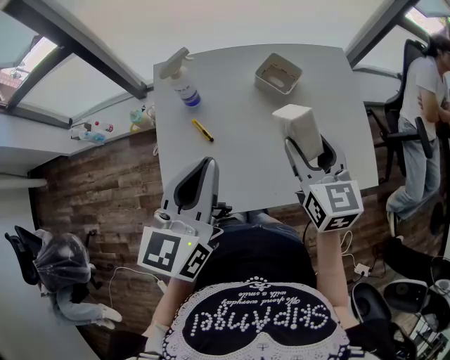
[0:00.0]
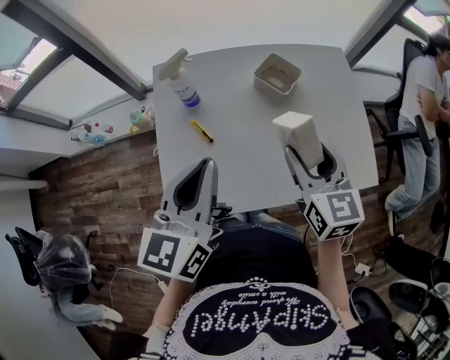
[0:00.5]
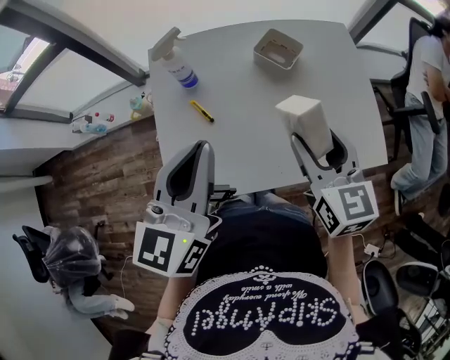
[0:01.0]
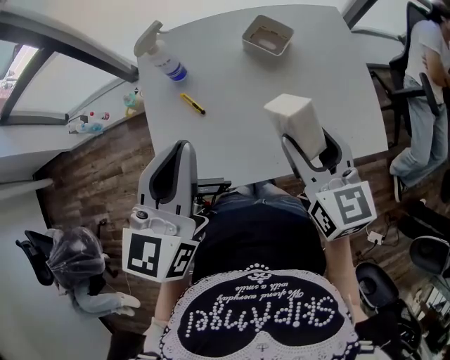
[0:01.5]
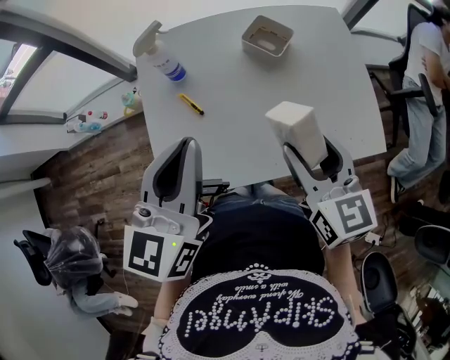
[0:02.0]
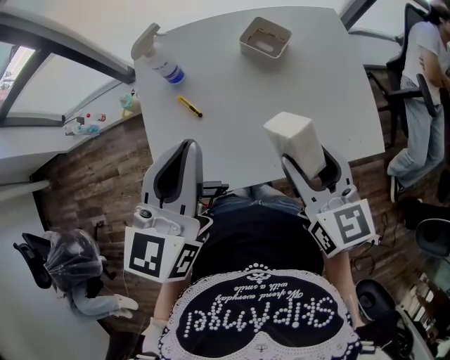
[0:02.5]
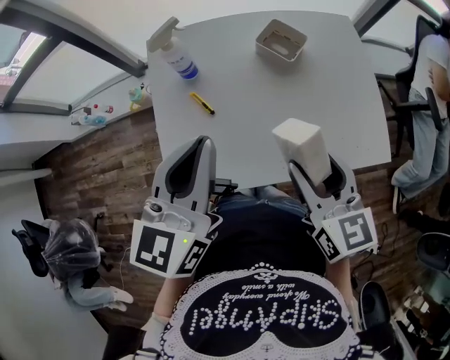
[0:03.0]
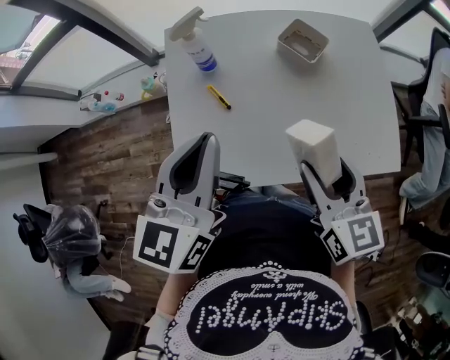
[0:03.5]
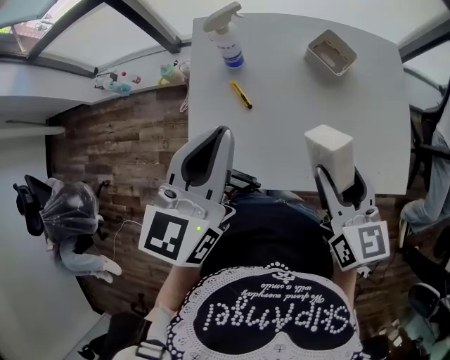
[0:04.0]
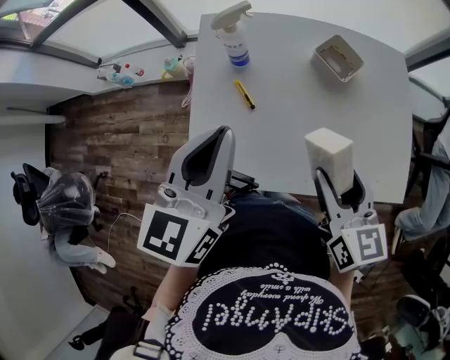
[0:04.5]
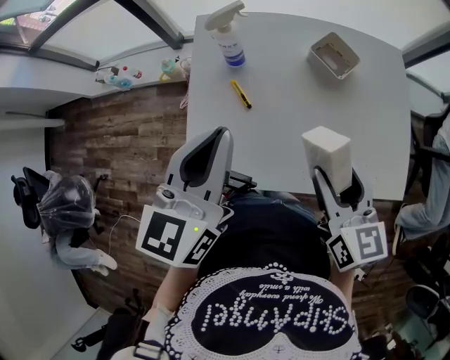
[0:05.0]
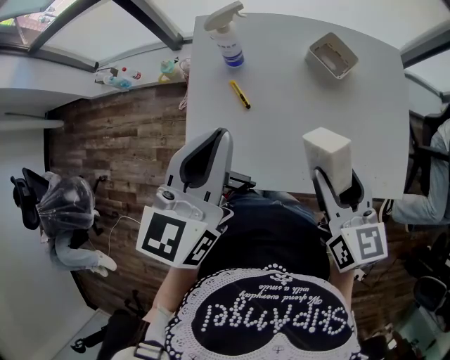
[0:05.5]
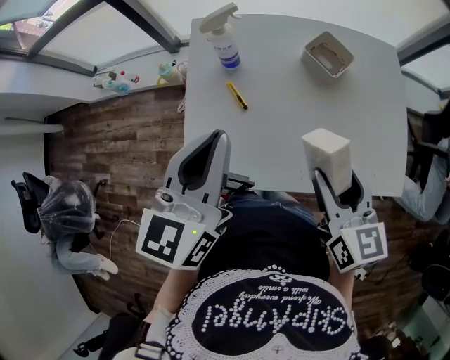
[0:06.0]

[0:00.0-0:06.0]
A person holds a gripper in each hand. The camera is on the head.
0:00.0 to 0:02.0: The right gripper shifts roughly 5 cm backward.
0:02.0 to 0:04.0: The grippers move only a little.
0:04.0 to 0:06.0: The two grippers keep their place.

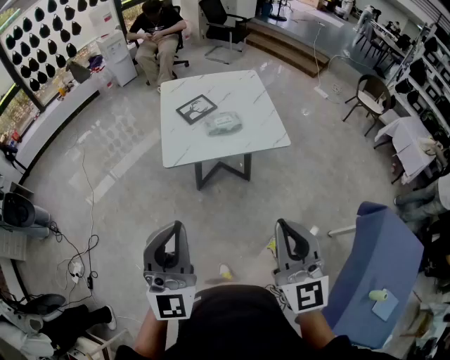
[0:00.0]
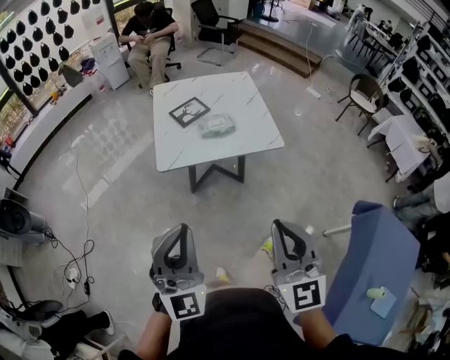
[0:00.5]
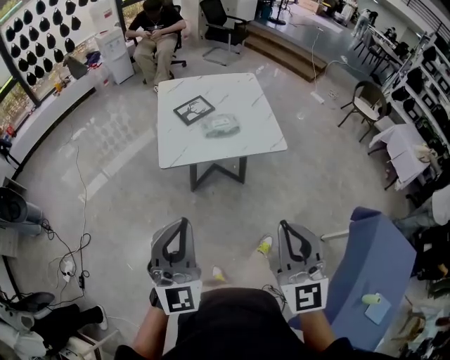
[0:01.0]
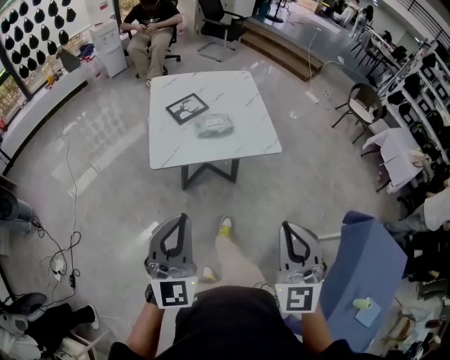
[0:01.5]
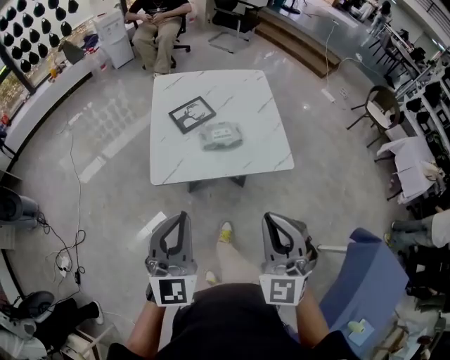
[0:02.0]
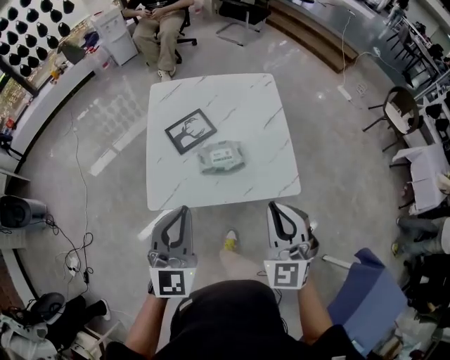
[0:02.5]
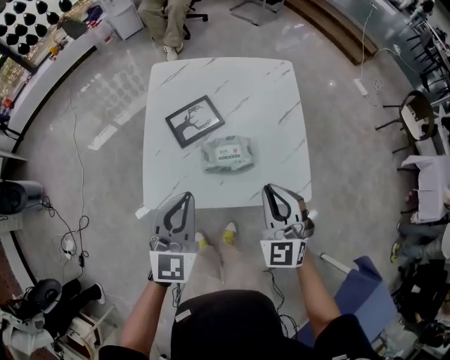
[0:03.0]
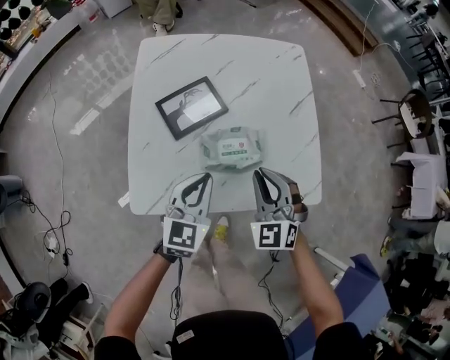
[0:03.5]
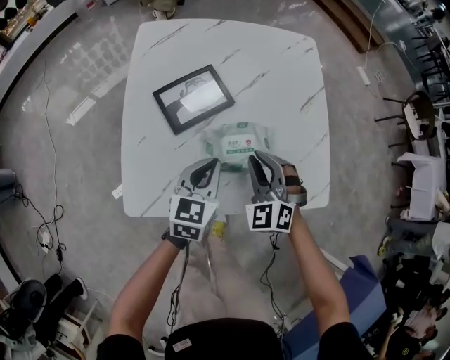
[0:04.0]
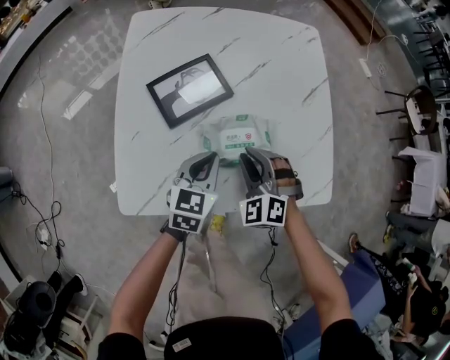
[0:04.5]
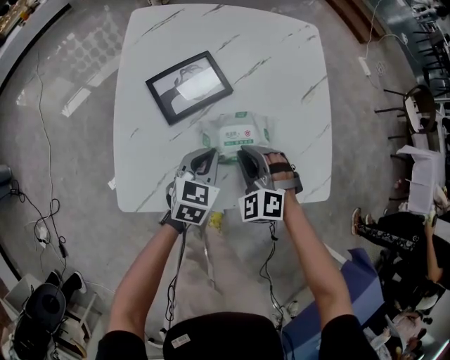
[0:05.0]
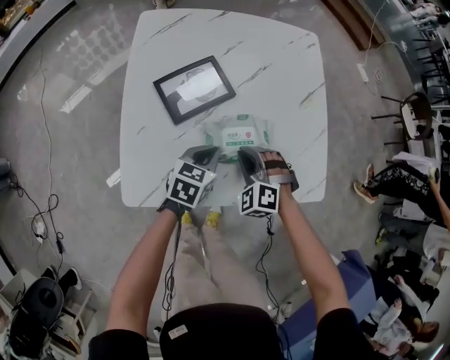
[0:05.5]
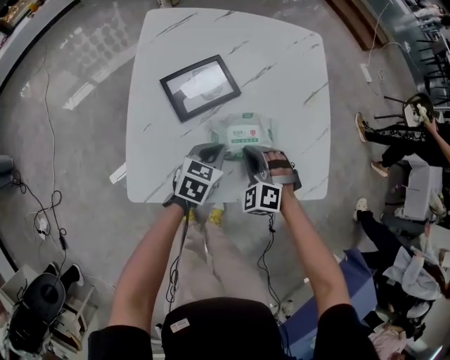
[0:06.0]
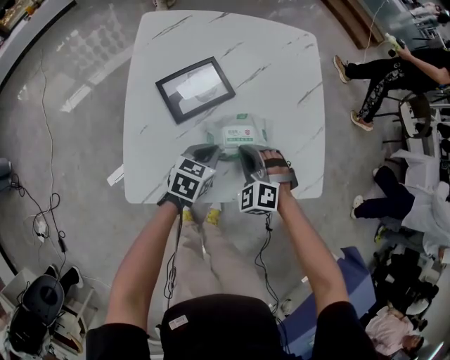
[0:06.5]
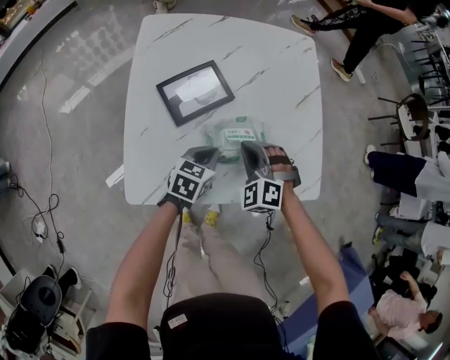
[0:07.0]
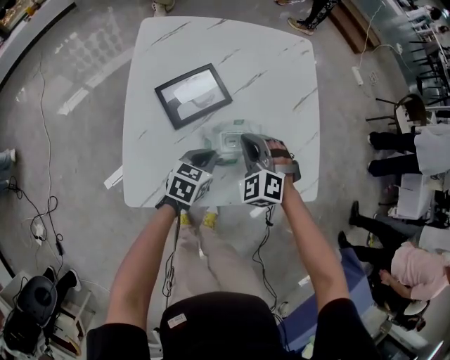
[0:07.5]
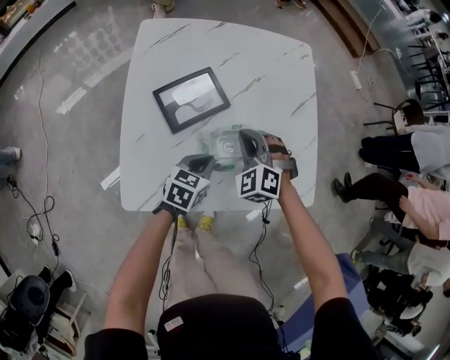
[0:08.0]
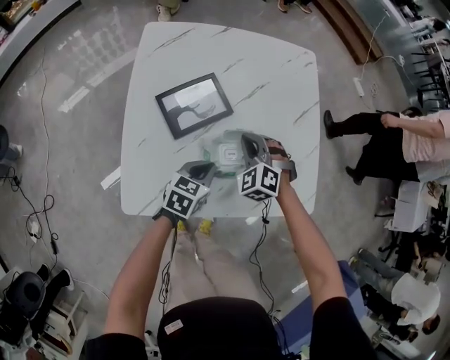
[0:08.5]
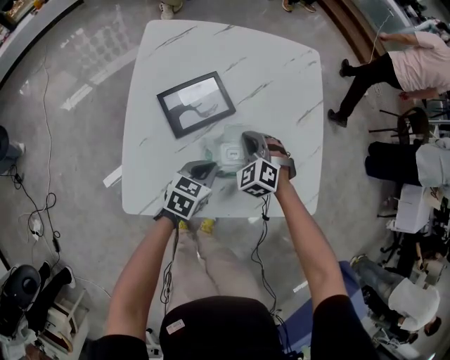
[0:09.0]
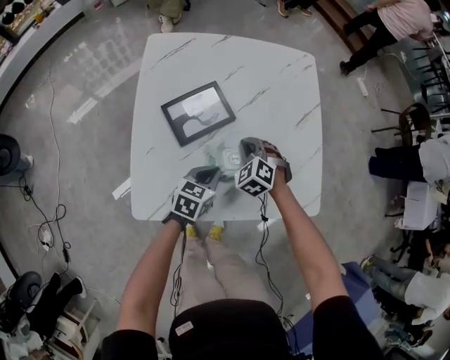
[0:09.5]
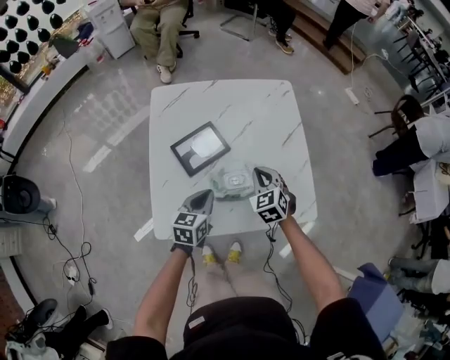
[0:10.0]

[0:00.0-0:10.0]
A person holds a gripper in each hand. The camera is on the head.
0:00.0 to 0:02.0: The grippers both shift forward by roughly 20 cm. The right gripper turns by some 30 degrees.
0:02.0 to 0:04.0: Both grippers are carried forward, about 40 cm. Both grippers travel together downward, approximately 35 cm. The left gripper swivels approximately 40 degrees; the right gripper turns by some 30 degrees.
0:04.0 to 0:06.0: The grippers both shift downward by about 5 cm. The right gripper rotates roughly 20 degrees.
0:06.0 to 0:08.0: The right gripper goes some 10 cm forward and upward.
0:08.0 to 0:10.0: The right gripper moves upward and to the right, about 10 cm, and turns by approximately 40 degrees; the left gripper is displaced upward by approximately 10 cm.

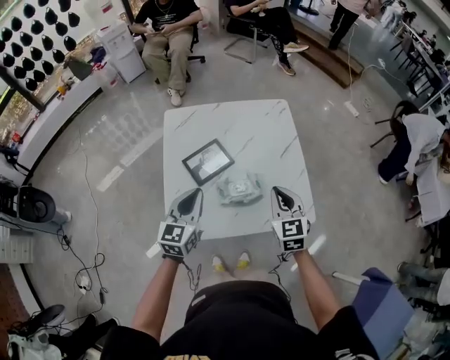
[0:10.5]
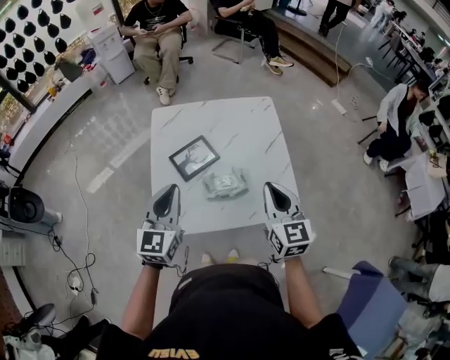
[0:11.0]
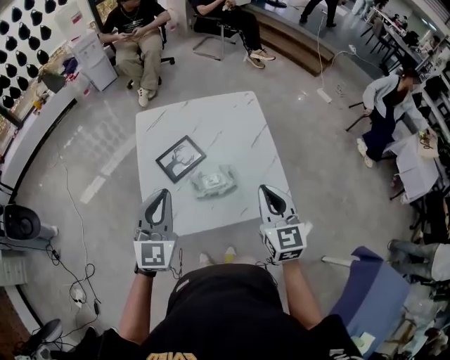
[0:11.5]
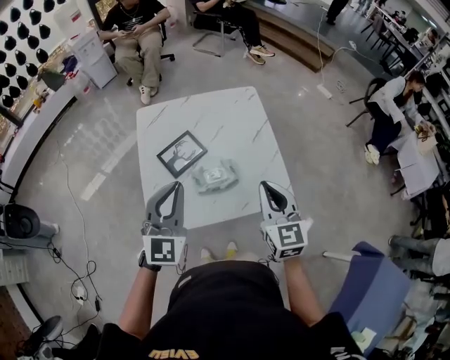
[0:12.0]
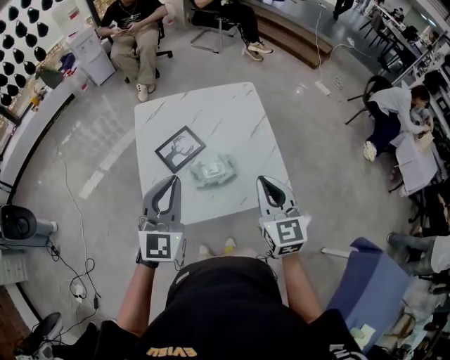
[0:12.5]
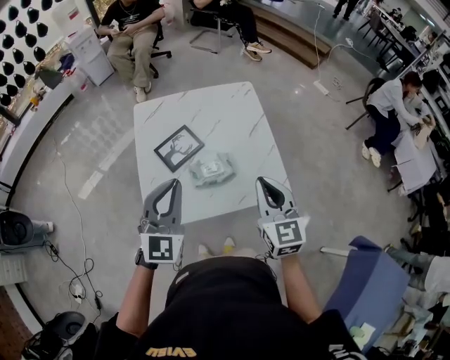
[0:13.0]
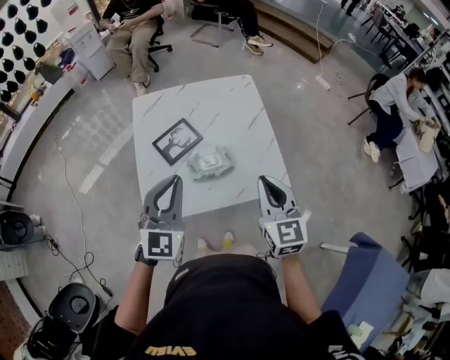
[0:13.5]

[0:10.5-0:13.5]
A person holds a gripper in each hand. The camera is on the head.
0:10.5 to 0:12.0: Both grippers move upward and backward, about 10 cm. The left gripper turns by about 30 degrees.
0:12.0 to 0:13.5: The grippers make only small movements.

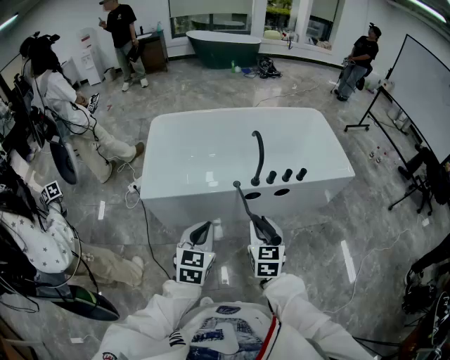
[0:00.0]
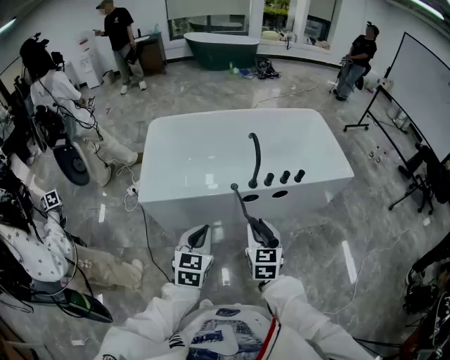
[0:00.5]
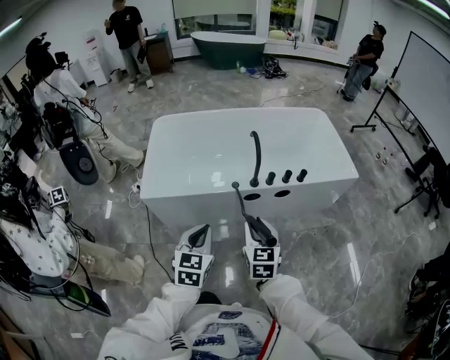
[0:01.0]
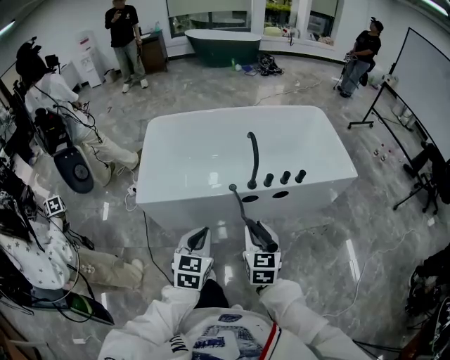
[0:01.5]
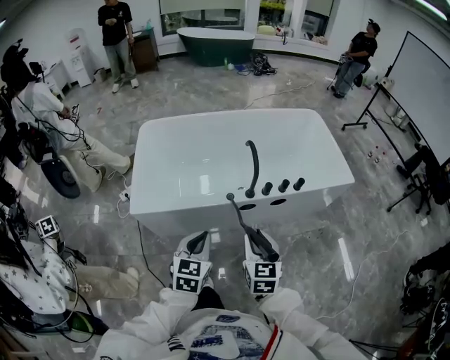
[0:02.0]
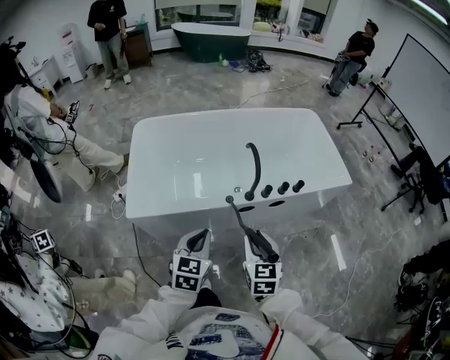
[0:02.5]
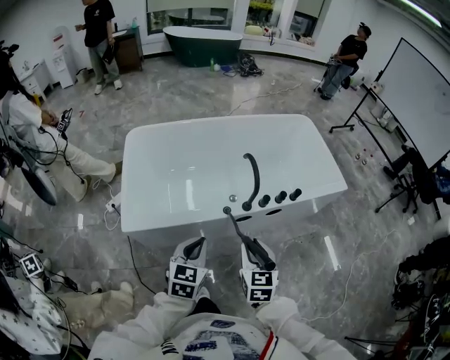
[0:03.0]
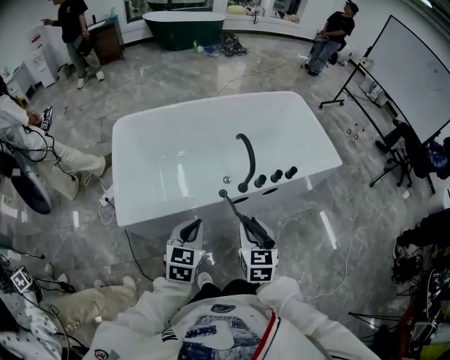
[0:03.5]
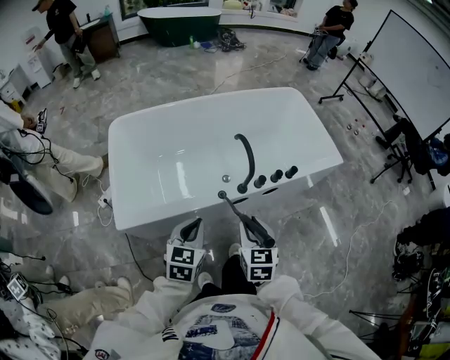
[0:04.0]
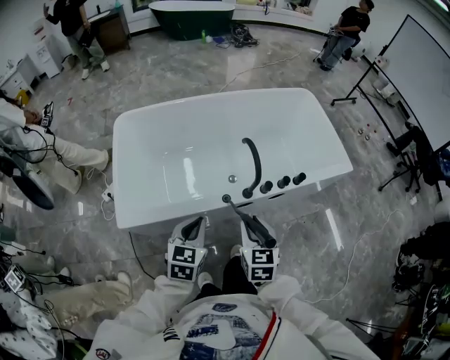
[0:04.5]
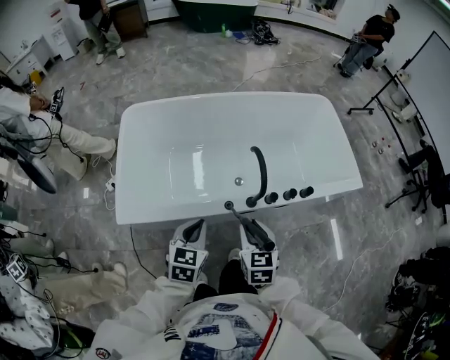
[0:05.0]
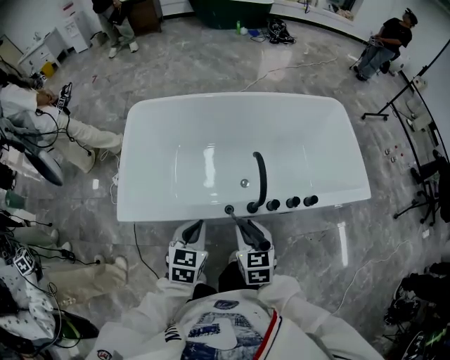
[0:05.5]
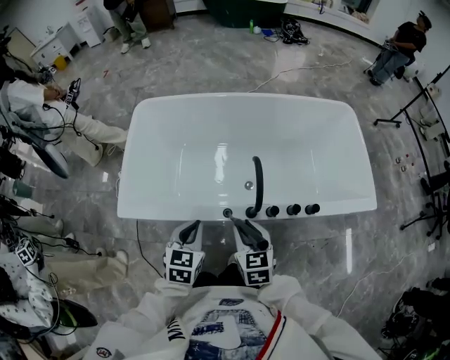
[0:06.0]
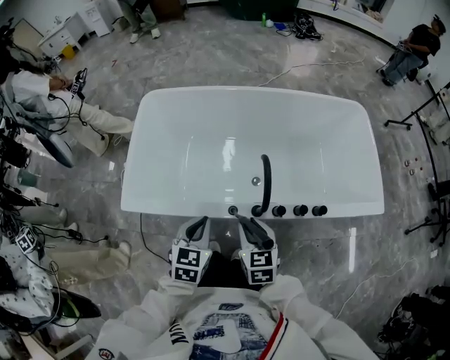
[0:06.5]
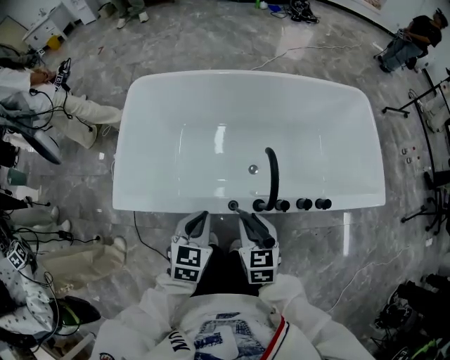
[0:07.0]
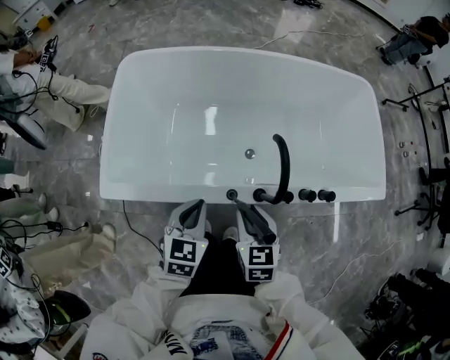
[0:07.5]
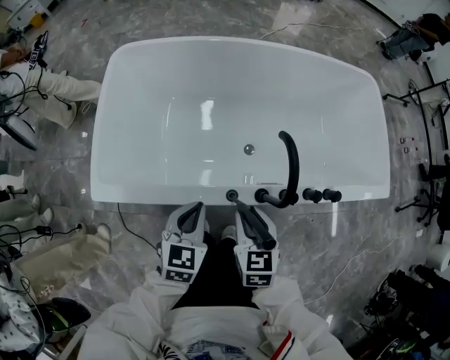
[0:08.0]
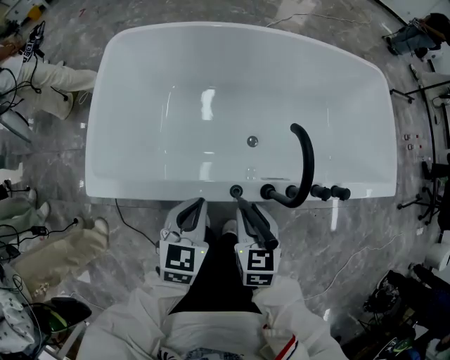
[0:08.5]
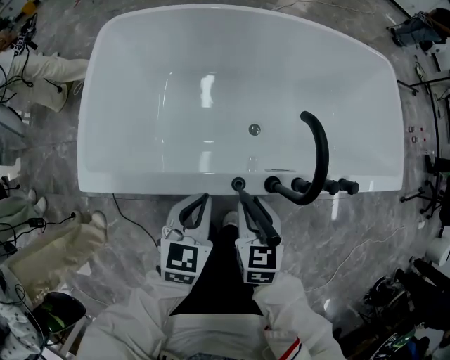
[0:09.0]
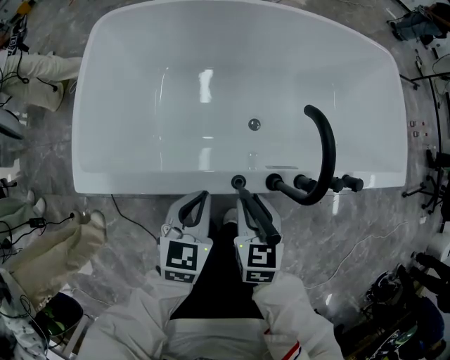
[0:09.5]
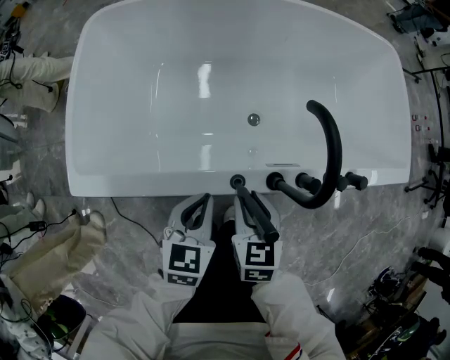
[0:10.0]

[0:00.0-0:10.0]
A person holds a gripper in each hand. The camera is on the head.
0:00.0 to 0:02.0: The left gripper travels forward by about 5 cm.
0:02.0 to 0:04.0: The left gripper heads forward and to the left, covering approximately 10 cm. The right gripper moves forward, approximately 10 cm.
0:04.0 to 0:06.0: The left gripper changes place by some 10 cm, and changes its angle by some 20 degrees. Meanwhile the right gripper changes place by some 15 cm, and swivels some 30 degrees.
0:06.0 to 0:08.0: The two grippers go approximately 10 cm downward.
0:08.0 to 0:10.0: The two grippers go roughly 10 cm downward.
